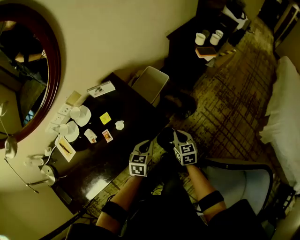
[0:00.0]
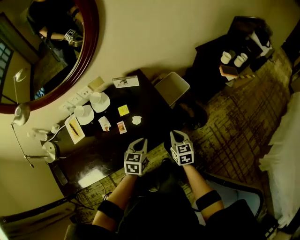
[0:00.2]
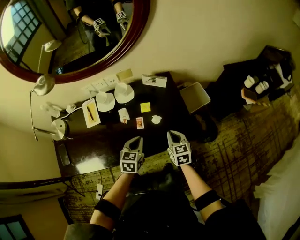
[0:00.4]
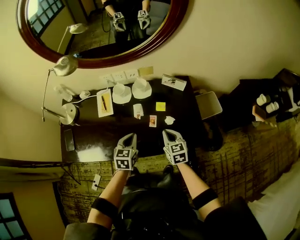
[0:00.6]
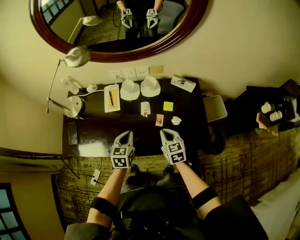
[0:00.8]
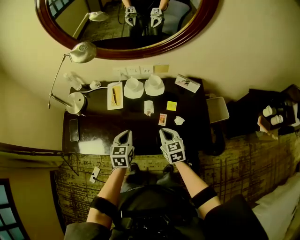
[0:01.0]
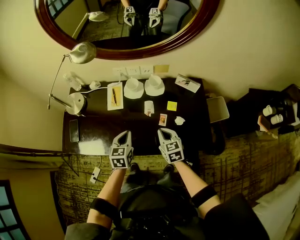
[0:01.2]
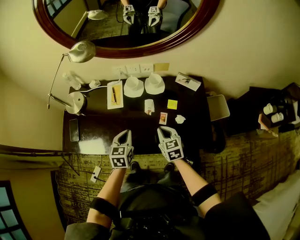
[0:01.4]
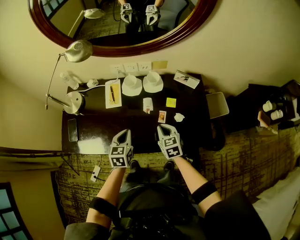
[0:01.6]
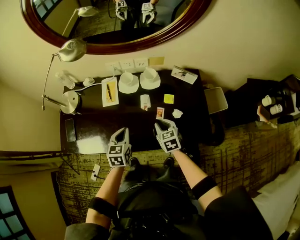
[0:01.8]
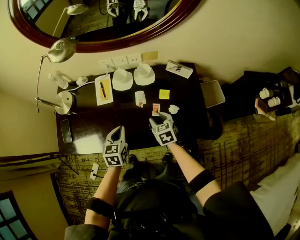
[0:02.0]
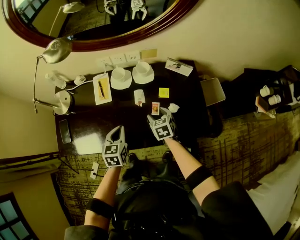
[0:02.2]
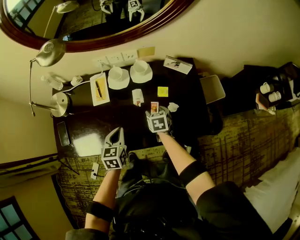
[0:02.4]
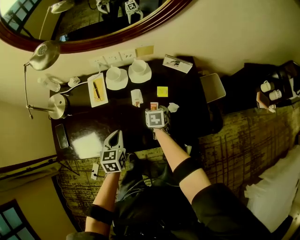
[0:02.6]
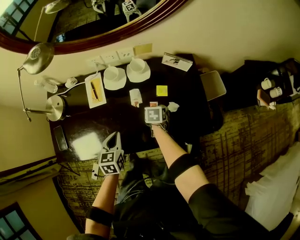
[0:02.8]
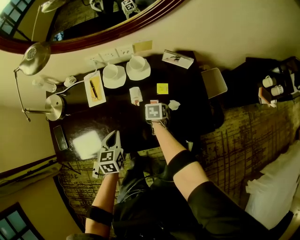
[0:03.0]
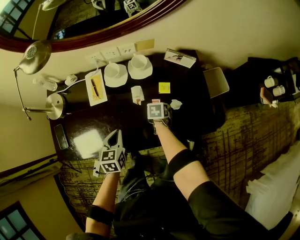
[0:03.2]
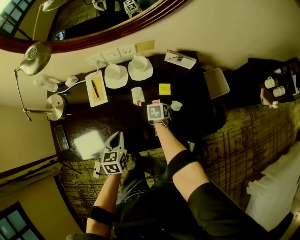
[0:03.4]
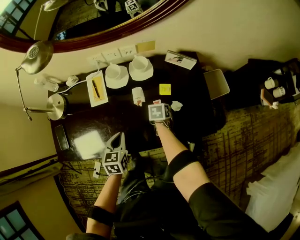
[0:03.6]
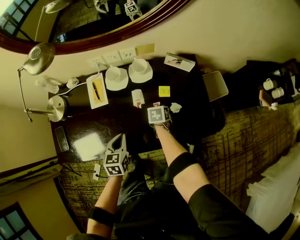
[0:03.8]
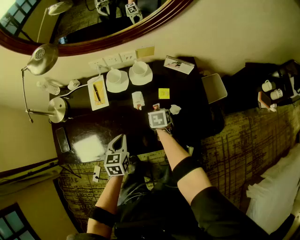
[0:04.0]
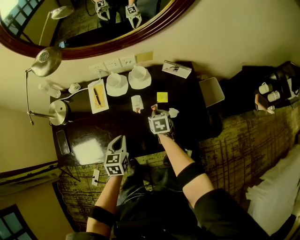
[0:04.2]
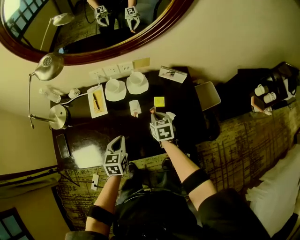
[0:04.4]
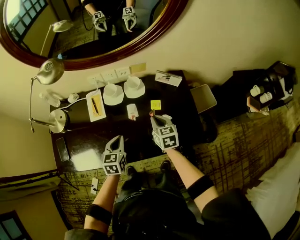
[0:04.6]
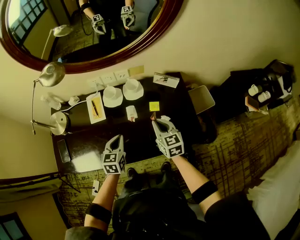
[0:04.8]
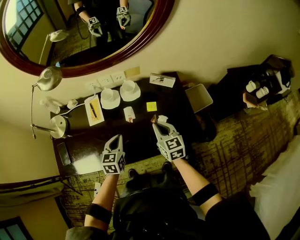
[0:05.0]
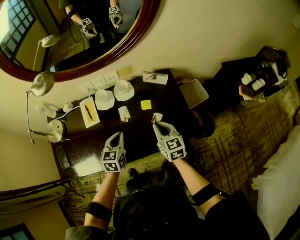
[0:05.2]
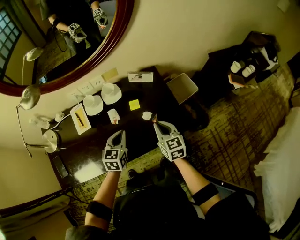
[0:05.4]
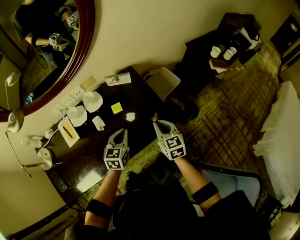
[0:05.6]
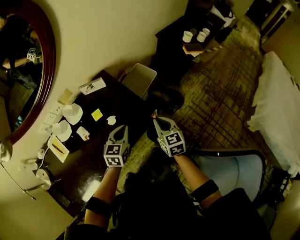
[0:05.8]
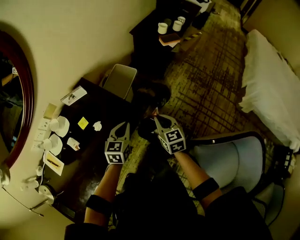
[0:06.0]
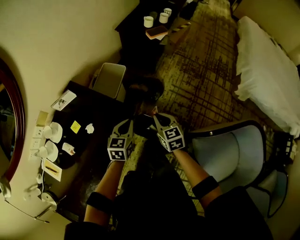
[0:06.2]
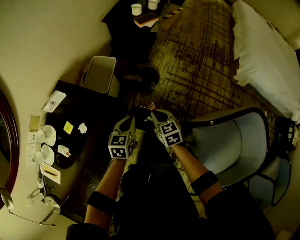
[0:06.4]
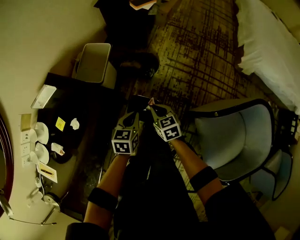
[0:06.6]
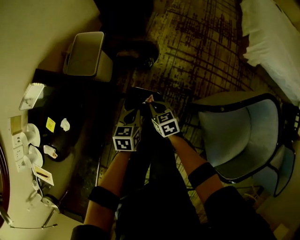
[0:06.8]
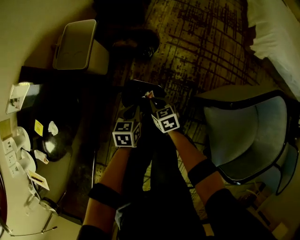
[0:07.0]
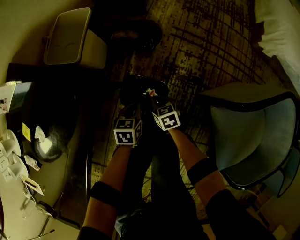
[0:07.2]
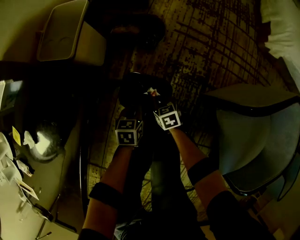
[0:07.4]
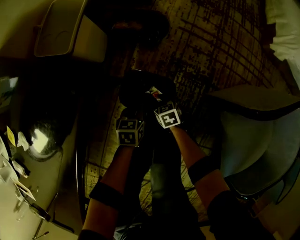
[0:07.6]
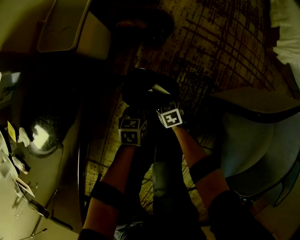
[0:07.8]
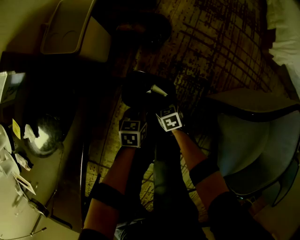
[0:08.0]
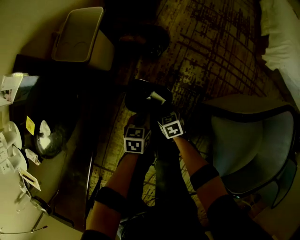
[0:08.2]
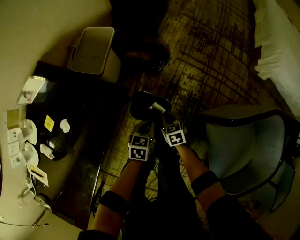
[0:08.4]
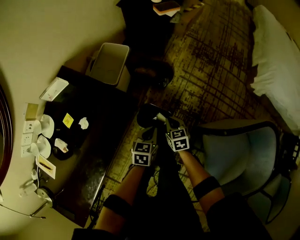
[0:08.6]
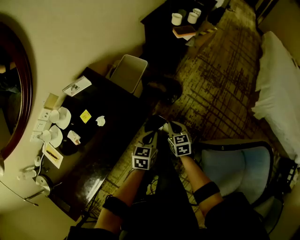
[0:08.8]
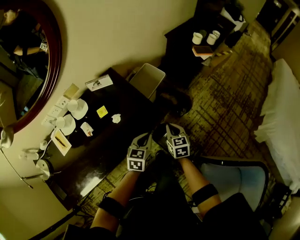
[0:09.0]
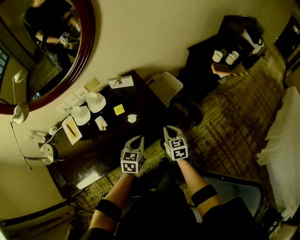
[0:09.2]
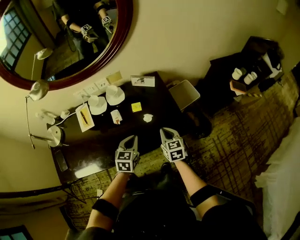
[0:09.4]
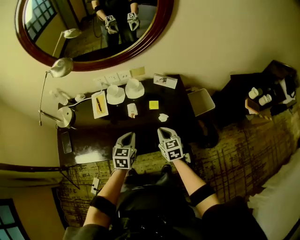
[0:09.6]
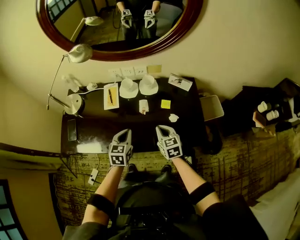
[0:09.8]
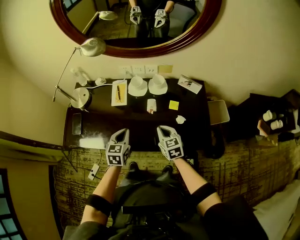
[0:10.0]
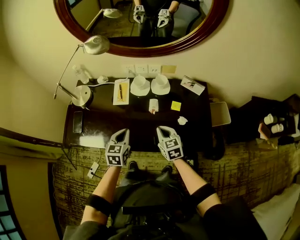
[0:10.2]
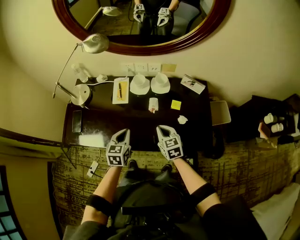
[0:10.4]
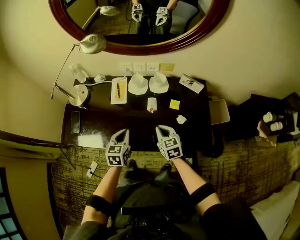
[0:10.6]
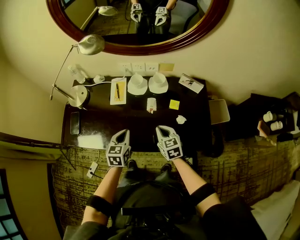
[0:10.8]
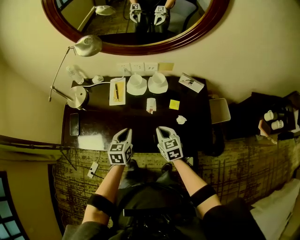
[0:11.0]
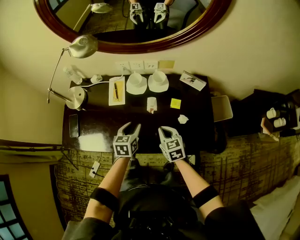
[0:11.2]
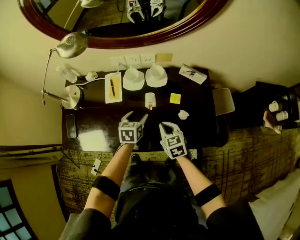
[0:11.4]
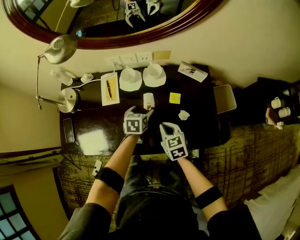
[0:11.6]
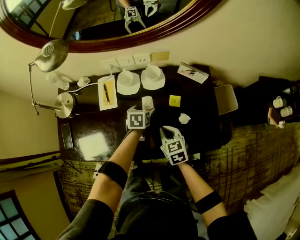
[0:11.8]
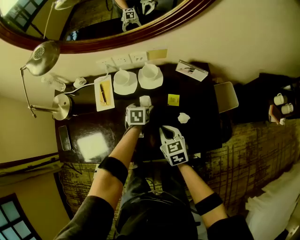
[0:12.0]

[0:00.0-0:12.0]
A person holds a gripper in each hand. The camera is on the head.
0:00.0 to 0:01.6: The pair of grippers is taken approximately 40 cm. The right gripper swivels approximately 50 degrees. The left gripper swivels some 50 degrees.
0:01.6 to 0:03.0: The left gripper heads downward, covering approximately 5 cm; the right gripper shifts about 20 cm downward and forward, rotates about 40 degrees, and opens up.
0:03.0 to 0:04.4: The right gripper moves upward, about 15 cm, swivels approximately 30 degrees, and closes.
0:04.4 to 0:06.0: The pair of grippers is taken about 40 cm. The left gripper rotates approximately 60 degrees. The right gripper turns by roughly 40 degrees.
0:06.0 to 0:07.6: The two grippers go about 60 cm downward. The right gripper rotates approximately 30 degrees. The left gripper changes its angle by some 30 degrees.
0:07.6 to 0:09.0: The grippers both shift upward by approximately 50 cm. The left gripper swivels approximately 30 degrees, while the right gripper turns by some 30 degrees.
0:09.0 to 0:10.4: The pair of grippers is taken some 40 cm. The right gripper changes its angle by approximately 60 degrees; the left gripper turns by approximately 60 degrees.
0:10.4 to 0:12.0: The left gripper shifts roughly 30 cm forward, downward and to the right, turns by some 30 degrees, and opens up. Meanwhile the right gripper is displaced downward and forward by about 10 cm.

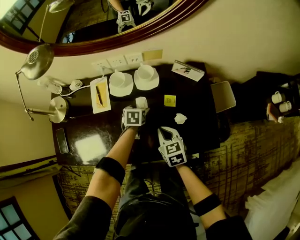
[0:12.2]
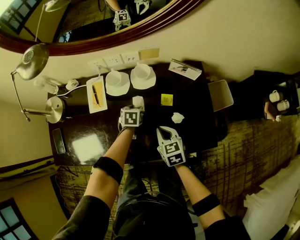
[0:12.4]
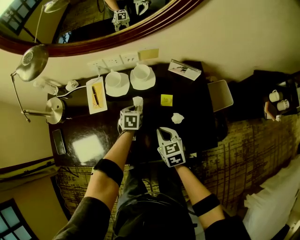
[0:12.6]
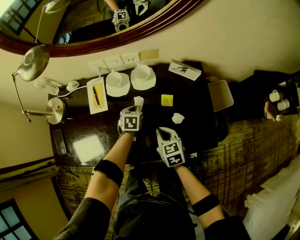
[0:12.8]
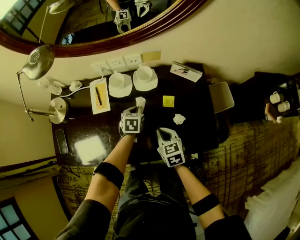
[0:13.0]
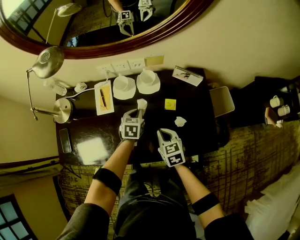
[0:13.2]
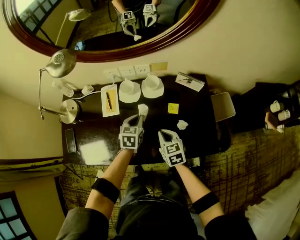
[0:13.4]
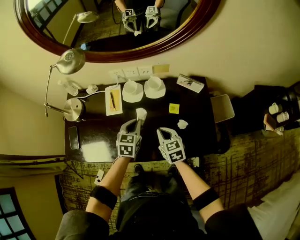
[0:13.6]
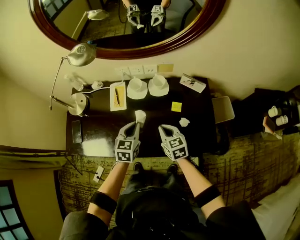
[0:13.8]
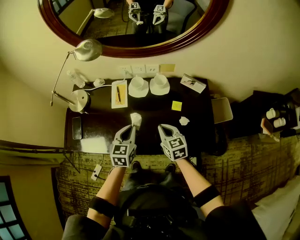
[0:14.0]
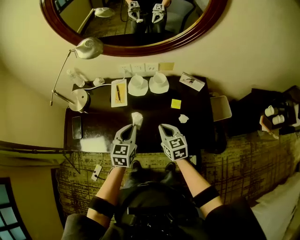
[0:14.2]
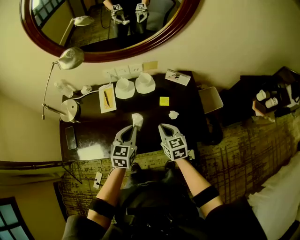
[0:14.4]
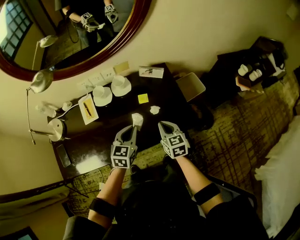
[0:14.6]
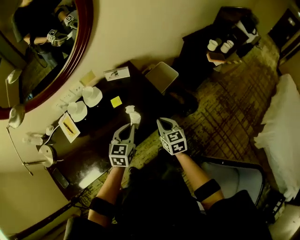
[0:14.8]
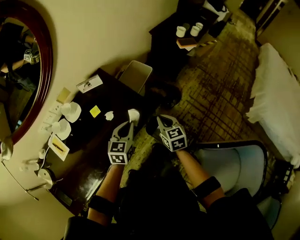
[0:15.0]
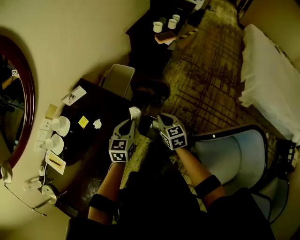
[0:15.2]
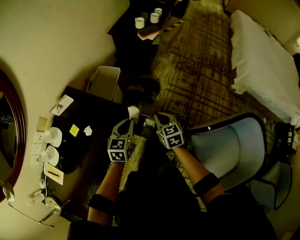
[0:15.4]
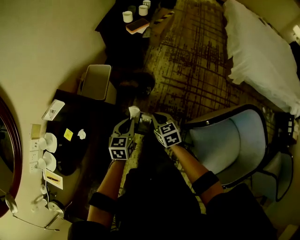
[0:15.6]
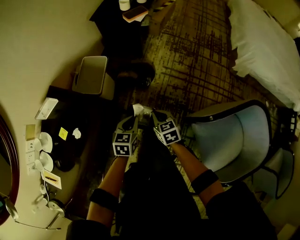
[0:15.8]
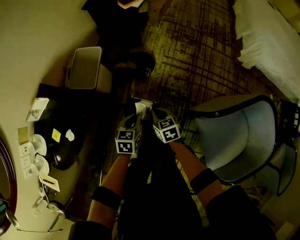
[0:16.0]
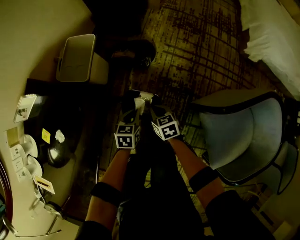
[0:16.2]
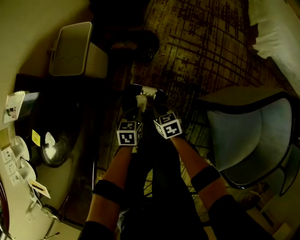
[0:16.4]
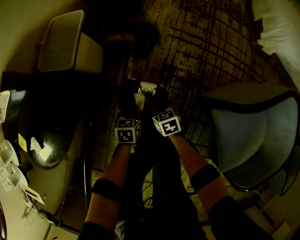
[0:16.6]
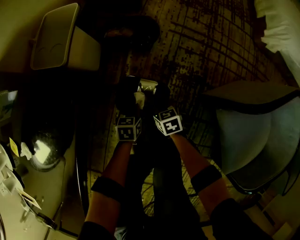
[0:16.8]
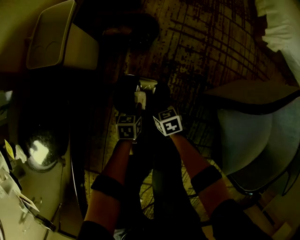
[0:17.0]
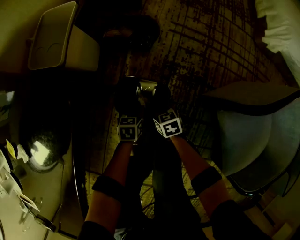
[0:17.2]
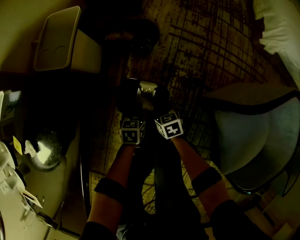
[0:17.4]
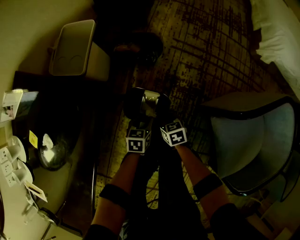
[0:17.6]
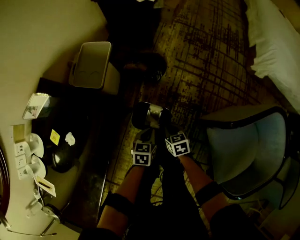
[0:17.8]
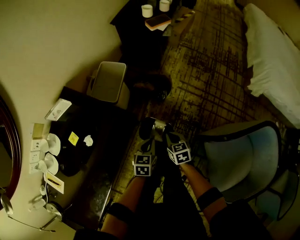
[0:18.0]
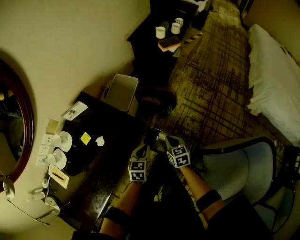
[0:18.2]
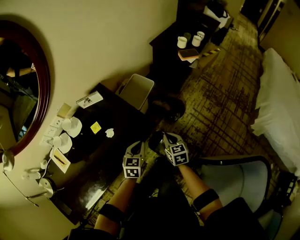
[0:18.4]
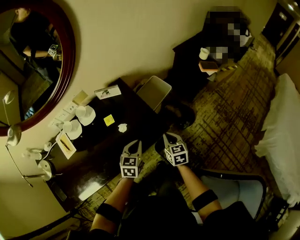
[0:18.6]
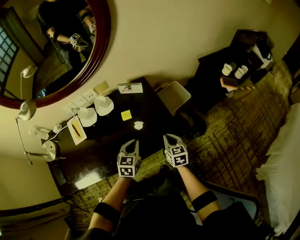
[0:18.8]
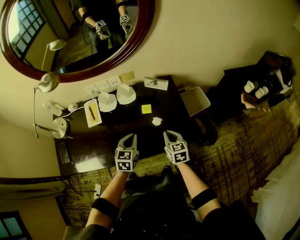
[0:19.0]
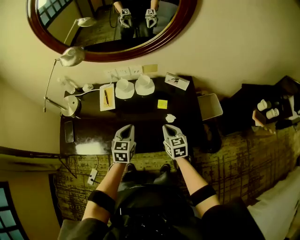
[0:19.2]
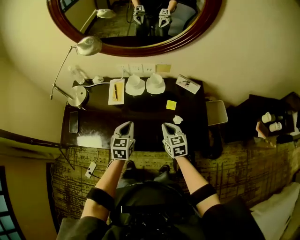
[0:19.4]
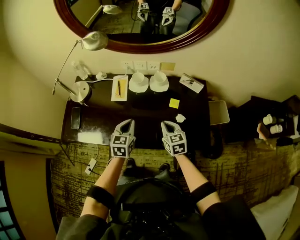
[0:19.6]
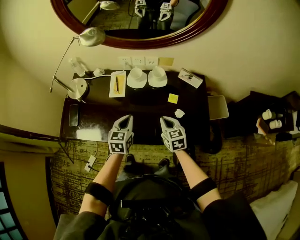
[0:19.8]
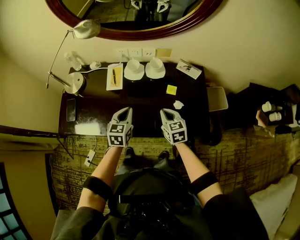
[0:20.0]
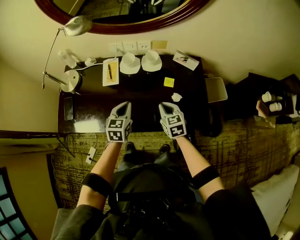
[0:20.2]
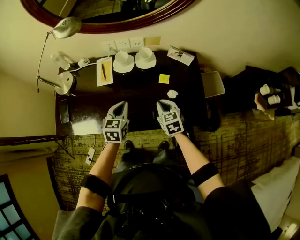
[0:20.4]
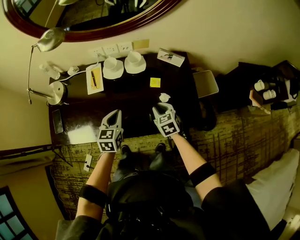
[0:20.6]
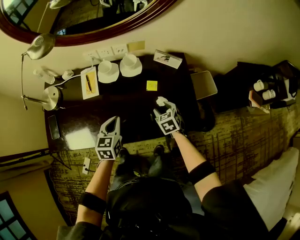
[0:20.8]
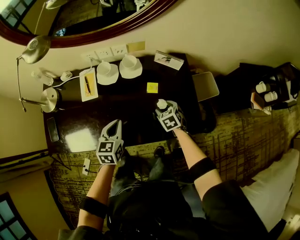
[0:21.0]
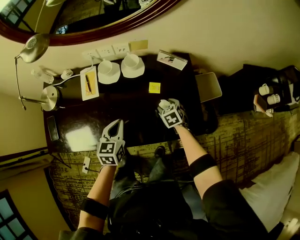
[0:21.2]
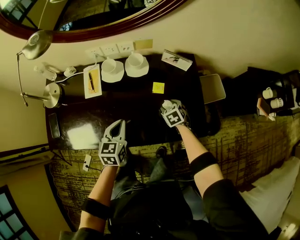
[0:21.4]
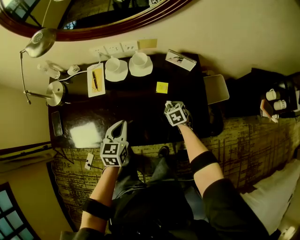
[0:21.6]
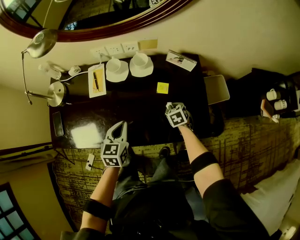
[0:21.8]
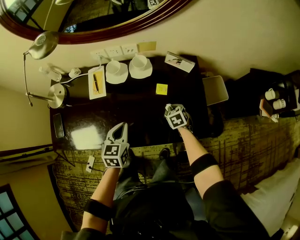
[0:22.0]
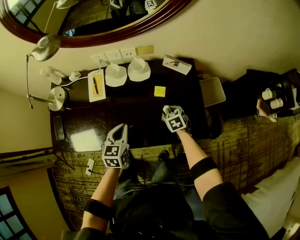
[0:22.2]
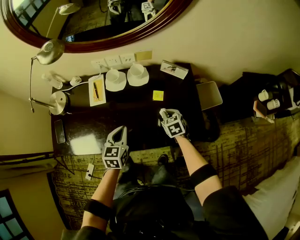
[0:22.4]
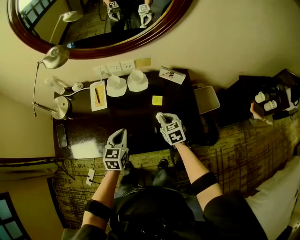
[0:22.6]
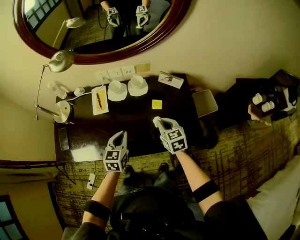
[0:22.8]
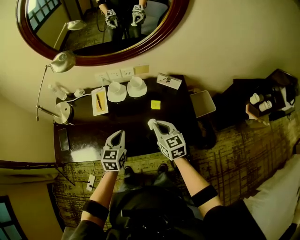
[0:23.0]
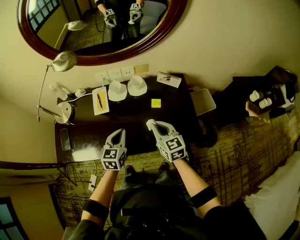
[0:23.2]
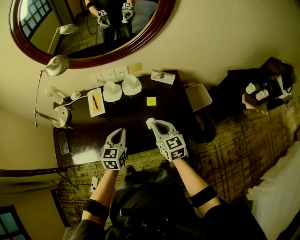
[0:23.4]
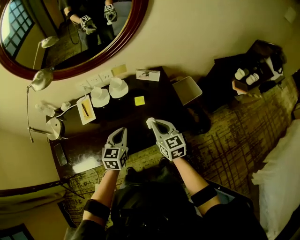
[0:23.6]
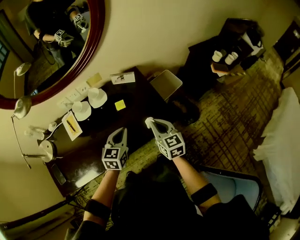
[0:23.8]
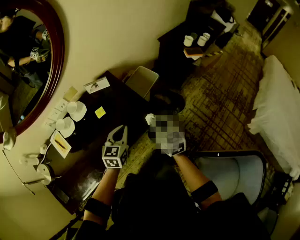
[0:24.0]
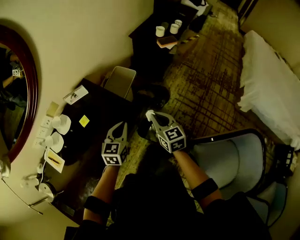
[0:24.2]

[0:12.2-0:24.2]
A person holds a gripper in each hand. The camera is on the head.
0:12.2 to 0:13.8: The right gripper moves upward, roughly 10 cm. Meanwhile the left gripper shifts some 25 cm upward and backward, changes its angle by approximately 30 degrees, and closes its fingers.
0:13.8 to 0:15.2: The pair of grippers is taken approximately 50 cm. The right gripper swivels about 60 degrees. Meanwhile the left gripper changes its angle by about 60 degrees.
0:15.2 to 0:16.6: The grippers both shift downward by roughly 50 cm. The left gripper turns by about 30 degrees. Meanwhile the right gripper changes its angle by approximately 30 degrees.
0:16.6 to 0:18.2: The grippers both shift upward by about 40 cm. The left gripper changes its angle by some 20 degrees, and opens, then closes again.
0:18.2 to 0:19.8: The pair of grippers is taken about 50 cm. The left gripper changes its angle by approximately 60 degrees. The right gripper swivels some 60 degrees.
0:19.8 to 0:21.2: The left gripper goes some 10 cm to the right and downward, while the right gripper travels downward, to the right and forward by about 20 cm, rotates approximately 30 degrees, and opens up.
0:21.2 to 0:22.6: The right gripper heads upward, covering approximately 10 cm, and closes its fingers.
0:22.6 to 0:24.2: The left gripper ends up approximately 35 cm from where it was, and rotates some 60 degrees. Meanwhile the right gripper ends up roughly 40 cm from where it was, and changes its angle by some 50 degrees.
